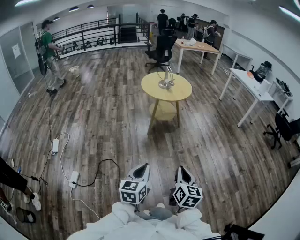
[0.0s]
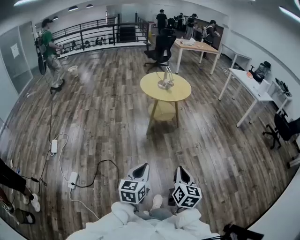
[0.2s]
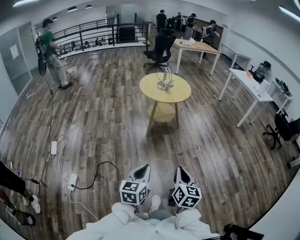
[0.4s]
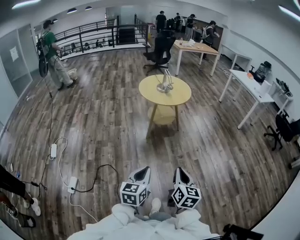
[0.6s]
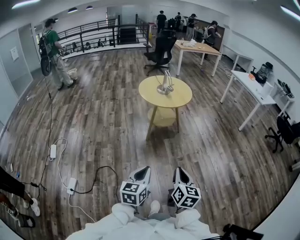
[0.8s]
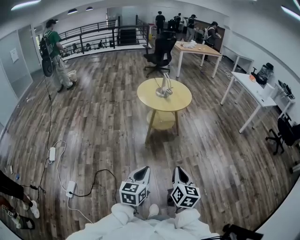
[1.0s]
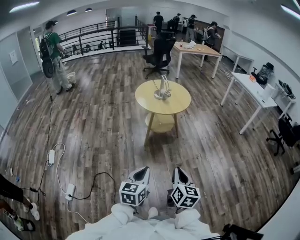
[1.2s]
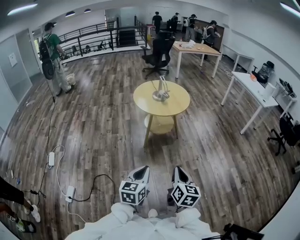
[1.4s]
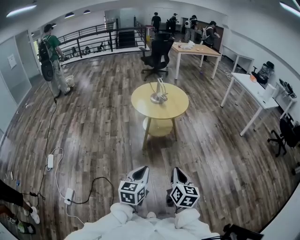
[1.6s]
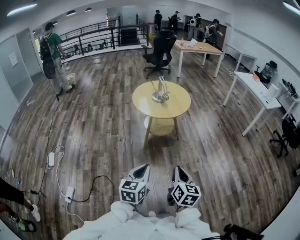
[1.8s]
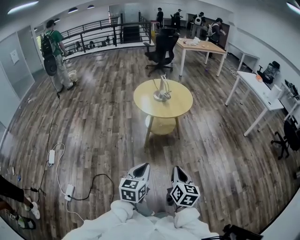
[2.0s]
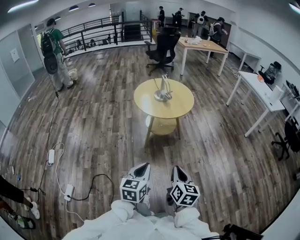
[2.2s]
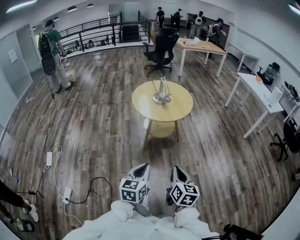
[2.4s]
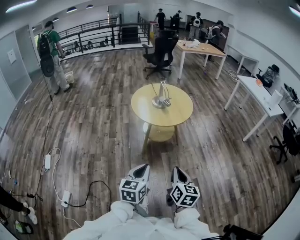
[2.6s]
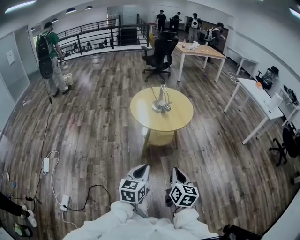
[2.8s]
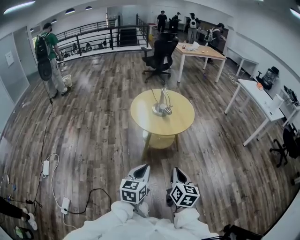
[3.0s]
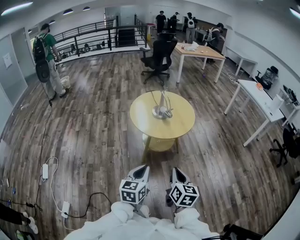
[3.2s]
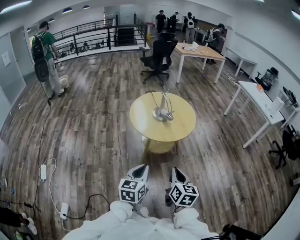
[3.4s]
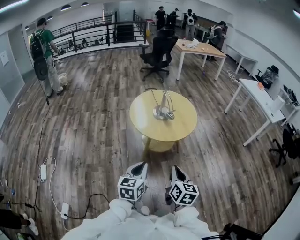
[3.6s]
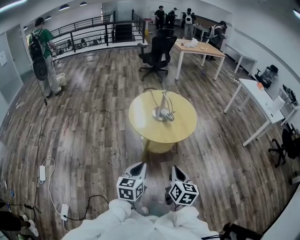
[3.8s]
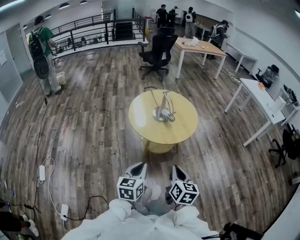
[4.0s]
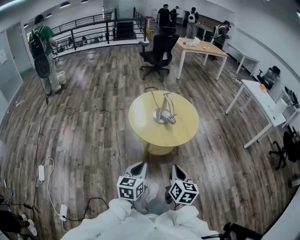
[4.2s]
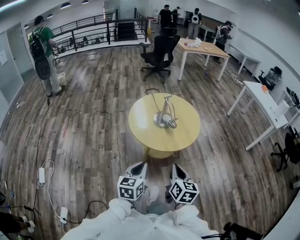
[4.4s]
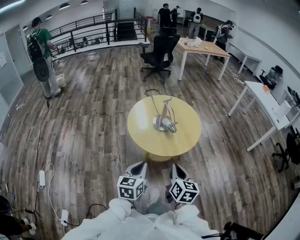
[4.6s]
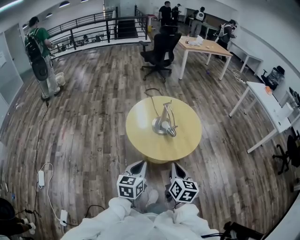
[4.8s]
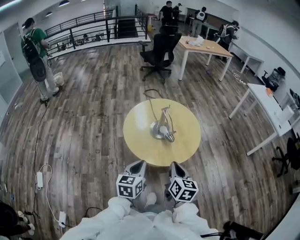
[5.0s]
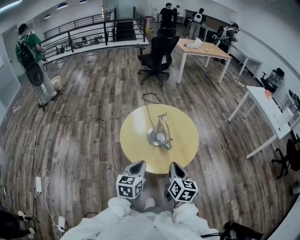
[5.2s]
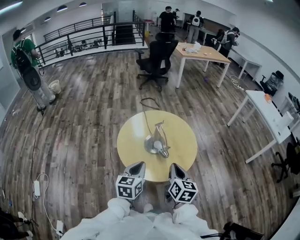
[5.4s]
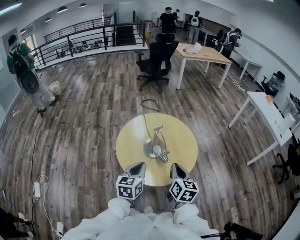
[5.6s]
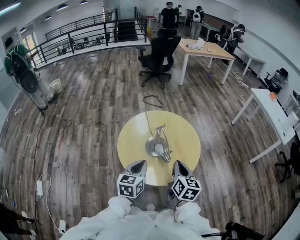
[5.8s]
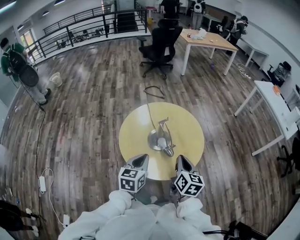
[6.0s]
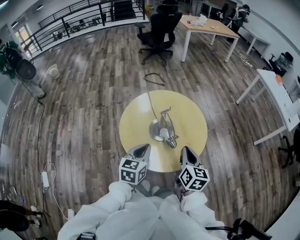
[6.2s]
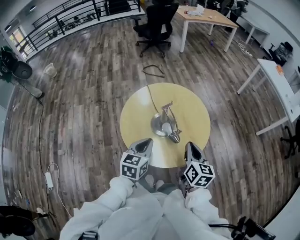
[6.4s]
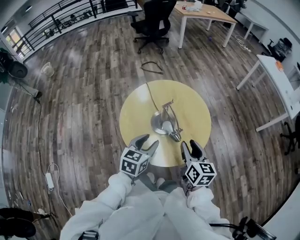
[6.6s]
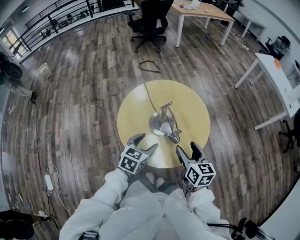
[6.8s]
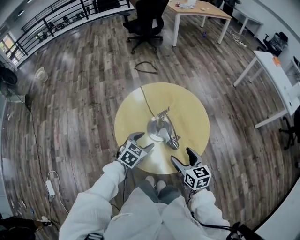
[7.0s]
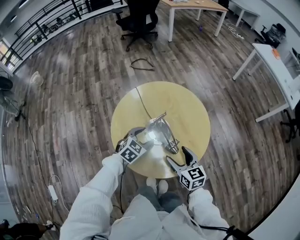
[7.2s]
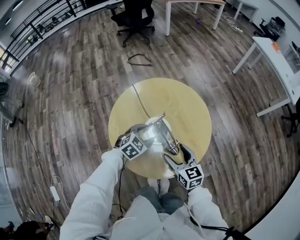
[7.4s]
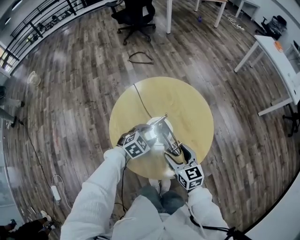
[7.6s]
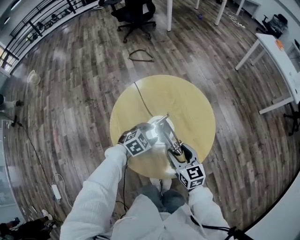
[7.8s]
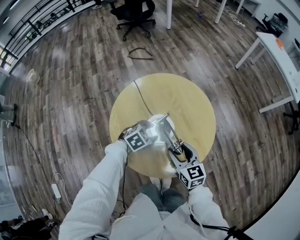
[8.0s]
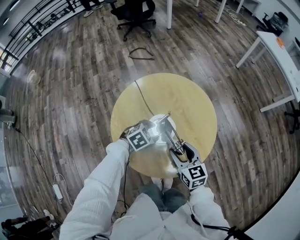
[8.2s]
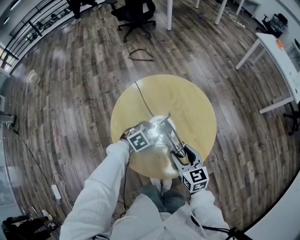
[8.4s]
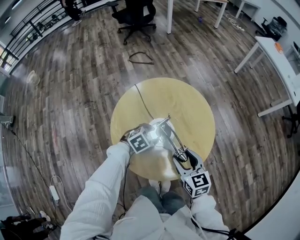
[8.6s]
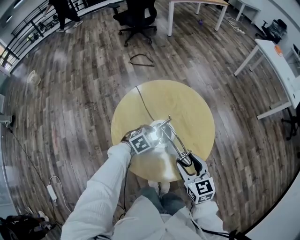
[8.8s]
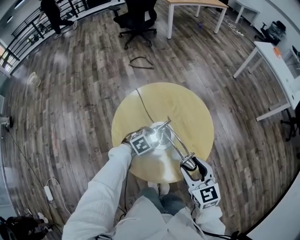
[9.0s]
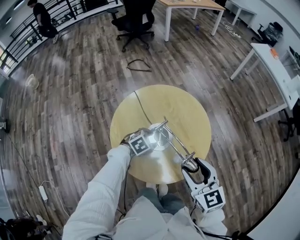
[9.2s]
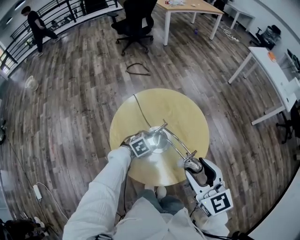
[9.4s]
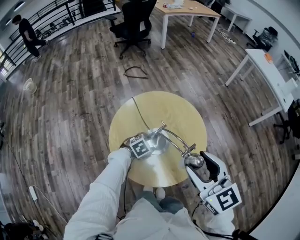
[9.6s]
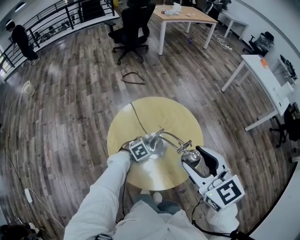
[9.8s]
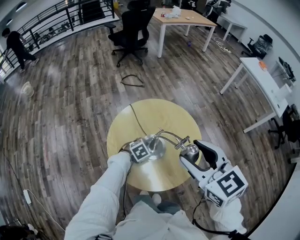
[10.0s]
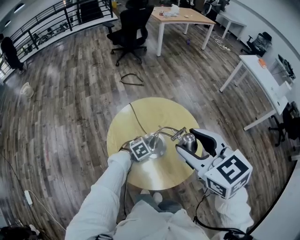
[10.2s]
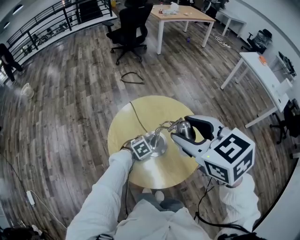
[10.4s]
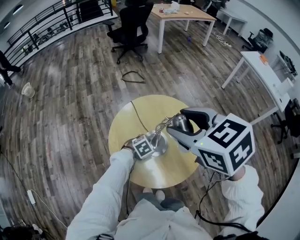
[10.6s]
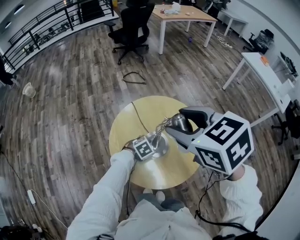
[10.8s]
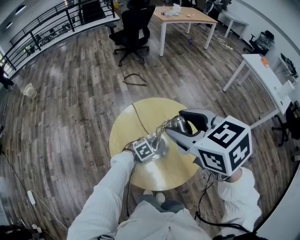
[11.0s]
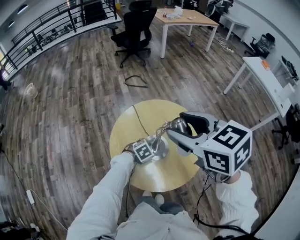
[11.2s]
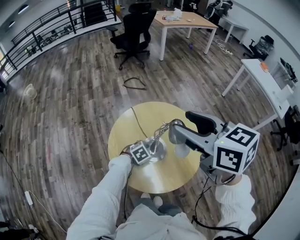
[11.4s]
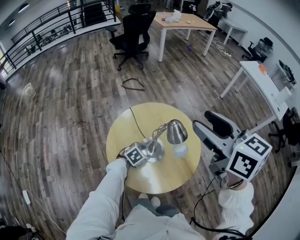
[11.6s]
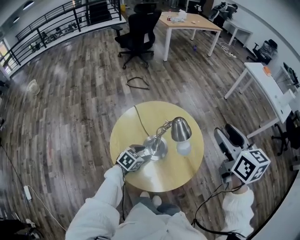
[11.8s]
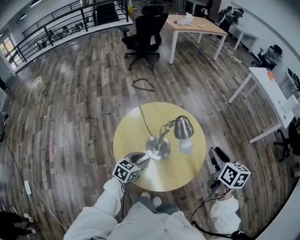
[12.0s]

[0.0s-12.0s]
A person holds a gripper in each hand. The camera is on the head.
0.0s to 1.6s: The grippers both shift forward by roughly 25 cm.
1.6s to 3.0s: Both grippers move forward, roughly 20 cm.
3.0s to 4.4s: Both grippers travel together forward, about 20 cm.
4.4s to 6.0s: Both grippers travel together forward, some 30 cm.
6.0s to 7.6s: The left gripper moves forward and downward, some 25 cm, rotates some 60 degrees, and opens its fingers, while the right gripper shifts about 15 cm downward, forward and to the left, turns by about 20 degrees, and opens up.
7.6s to 9.0s: The right gripper heads upward, covering about 10 cm.
9.0s to 10.4s: The right gripper is displaced upward and to the left by roughly 25 cm.
10.4s to 12.0s: The right gripper travels to the right and downward by approximately 25 cm, and changes its angle by roughly 40 degrees, while the left gripper travels upward and backward by some 10 cm, turns by about 40 degrees, and closes up.

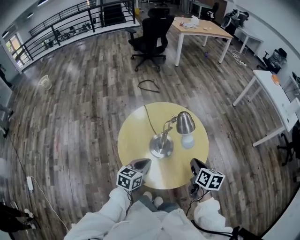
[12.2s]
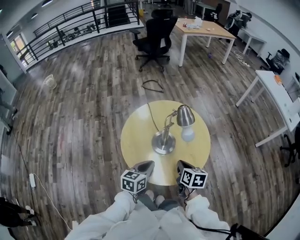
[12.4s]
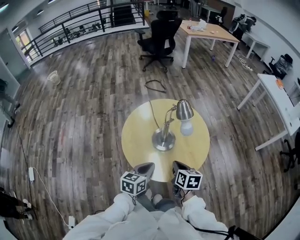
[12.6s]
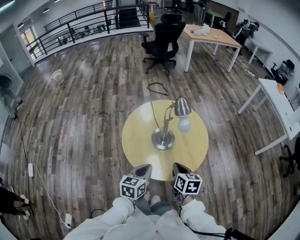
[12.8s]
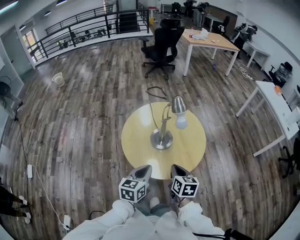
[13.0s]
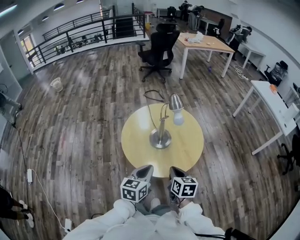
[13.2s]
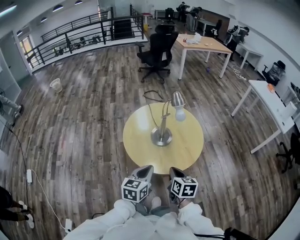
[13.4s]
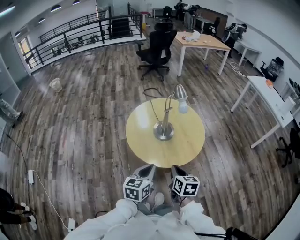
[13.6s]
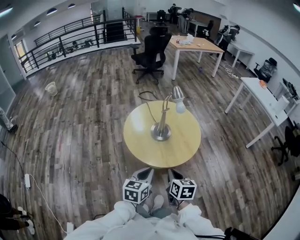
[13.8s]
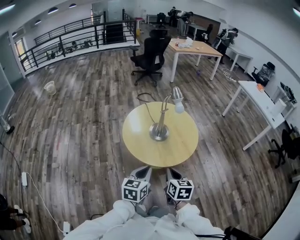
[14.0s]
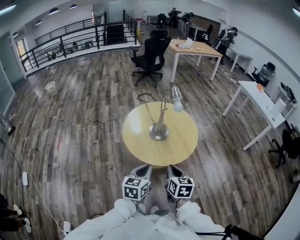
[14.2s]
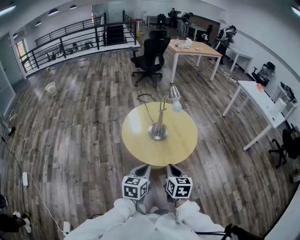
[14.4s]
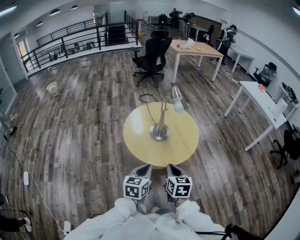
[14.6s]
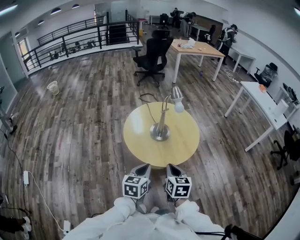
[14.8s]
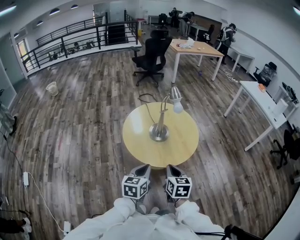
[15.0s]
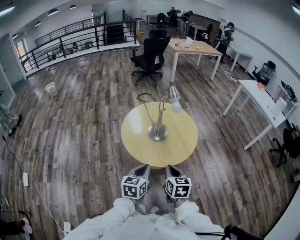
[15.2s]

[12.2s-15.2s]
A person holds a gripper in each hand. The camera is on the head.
12.2s to 13.8s: The left gripper heads backward, covering approximately 25 cm. The right gripper is displaced backward and to the left by some 25 cm.
13.8s to 15.2s: The grippers move only a little.

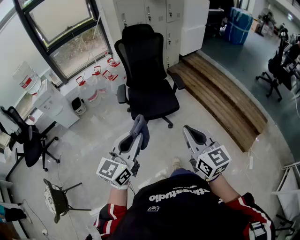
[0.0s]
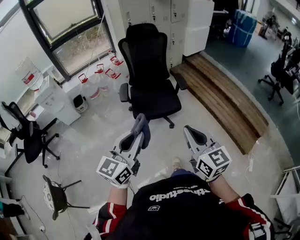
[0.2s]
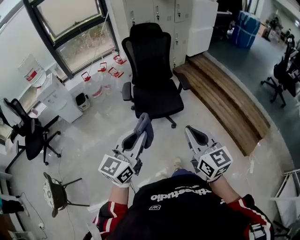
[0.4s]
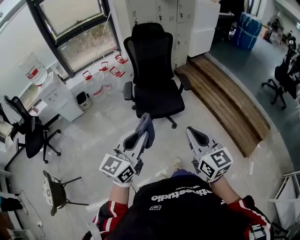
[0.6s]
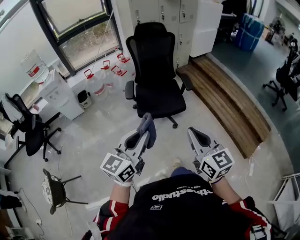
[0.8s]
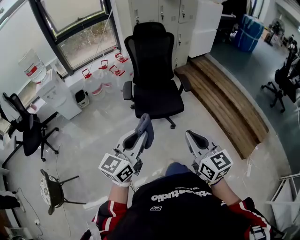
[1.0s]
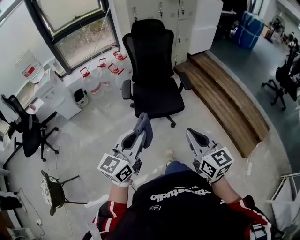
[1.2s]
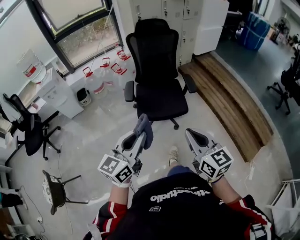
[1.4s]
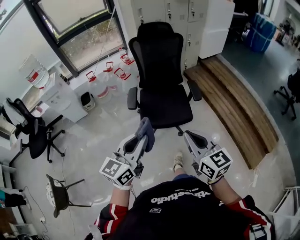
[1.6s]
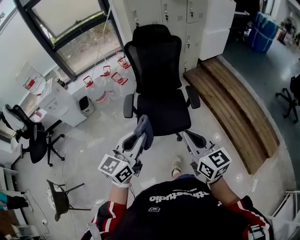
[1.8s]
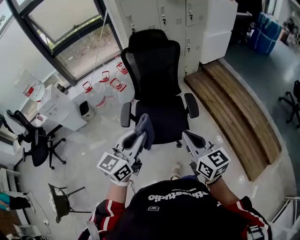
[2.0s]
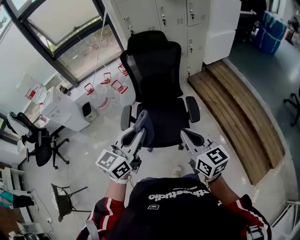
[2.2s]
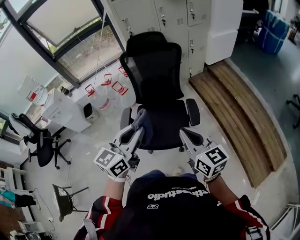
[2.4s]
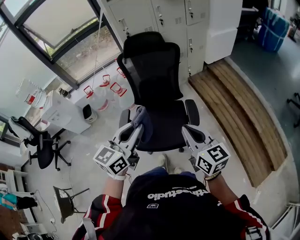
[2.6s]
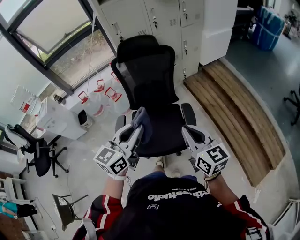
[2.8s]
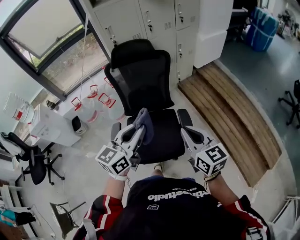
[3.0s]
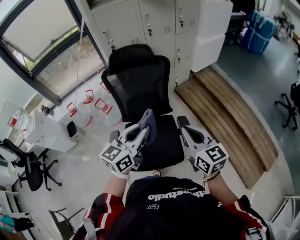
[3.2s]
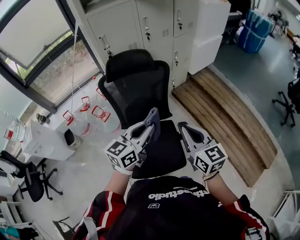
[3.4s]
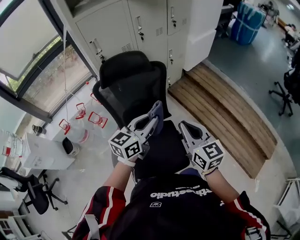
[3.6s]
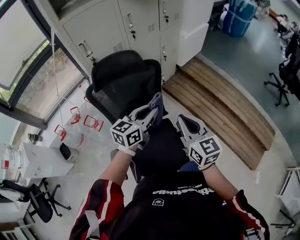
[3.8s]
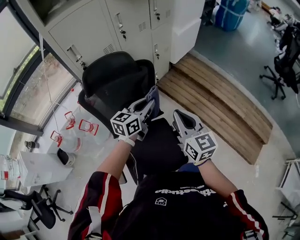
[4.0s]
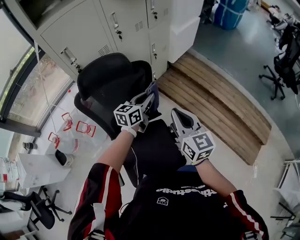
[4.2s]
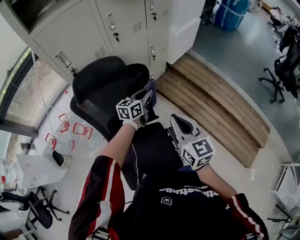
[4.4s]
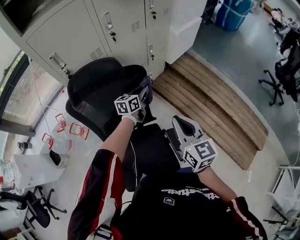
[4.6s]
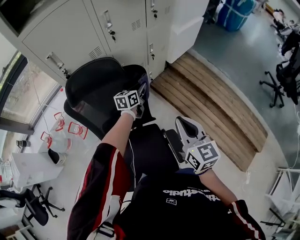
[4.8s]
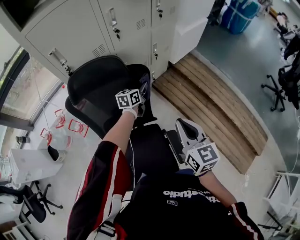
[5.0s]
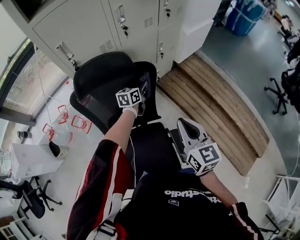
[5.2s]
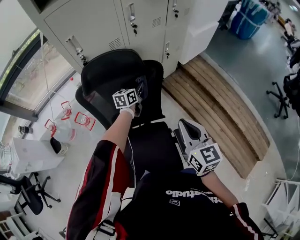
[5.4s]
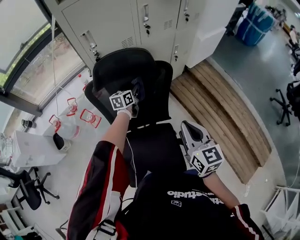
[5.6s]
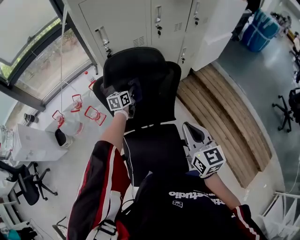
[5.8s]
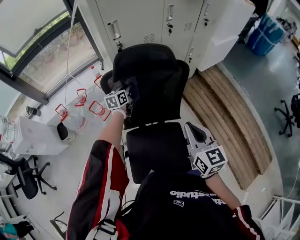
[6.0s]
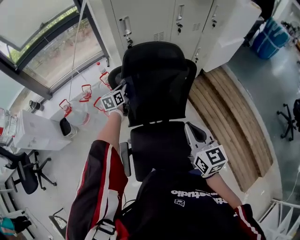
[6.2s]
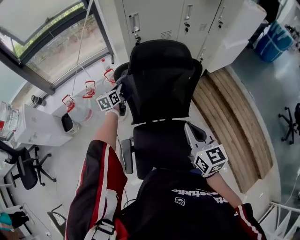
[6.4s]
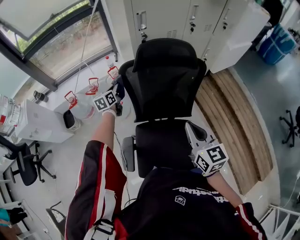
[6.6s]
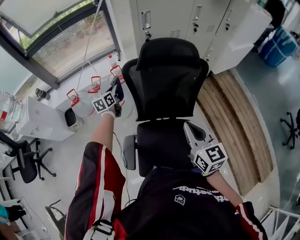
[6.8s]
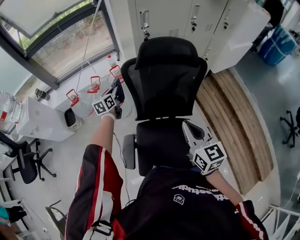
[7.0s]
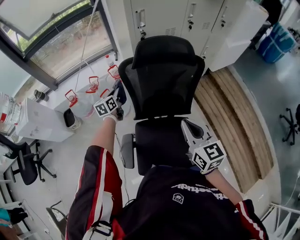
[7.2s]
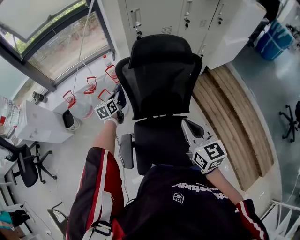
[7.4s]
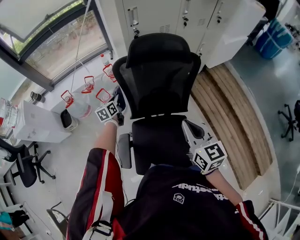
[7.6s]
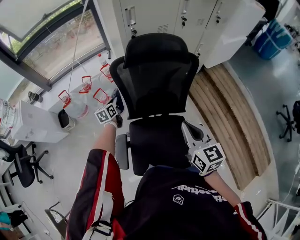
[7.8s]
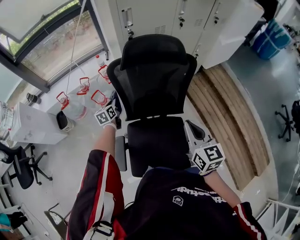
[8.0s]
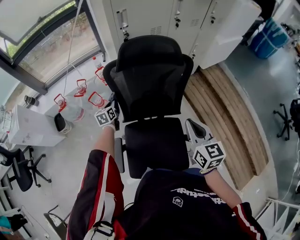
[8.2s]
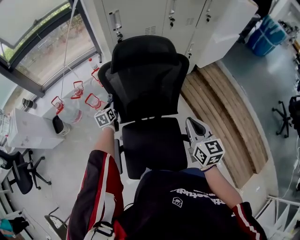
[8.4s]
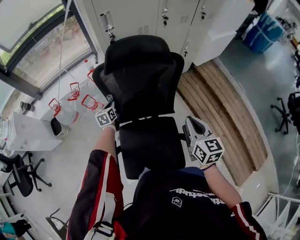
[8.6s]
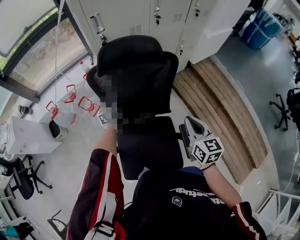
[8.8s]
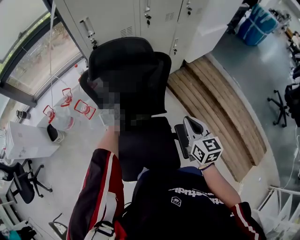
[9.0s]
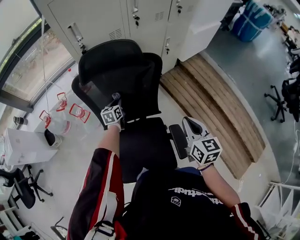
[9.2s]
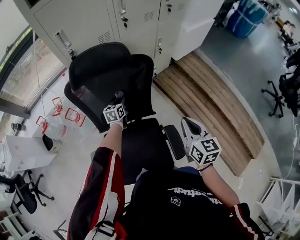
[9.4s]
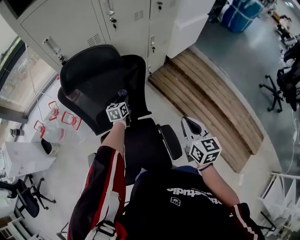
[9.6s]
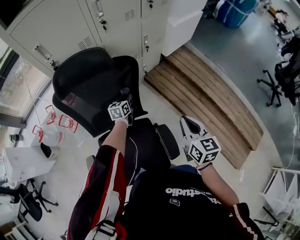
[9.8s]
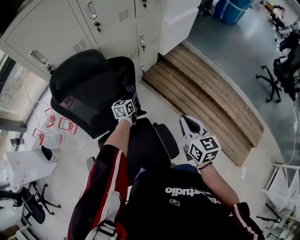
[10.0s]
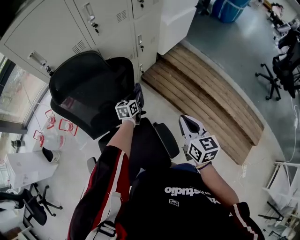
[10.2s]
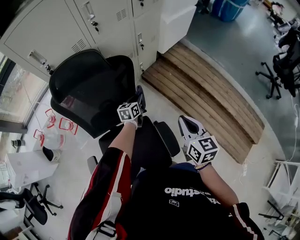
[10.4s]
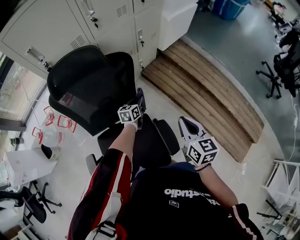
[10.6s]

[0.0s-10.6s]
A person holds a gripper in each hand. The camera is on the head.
0.0s to 1.6s: Both grippers travel together forward, approximately 15 cm.
1.6s to 3.0s: The pair of grippers is taken forward, approximately 40 cm.
3.0s to 4.6s: The left gripper is displaced forward by about 60 cm, and turns by roughly 20 degrees. Meanwhile the right gripper goes roughly 35 cm forward, and turns by about 20 degrees.
4.6s to 6.0s: The left gripper goes approximately 35 cm to the left, and swivels about 30 degrees; the right gripper moves to the left, some 15 cm.
6.0s to 7.6s: The left gripper shifts approximately 20 cm to the left and backward. The right gripper travels to the left by about 5 cm.
7.6s to 9.0s: Both grippers move to the right, some 20 cm.
9.0s to 10.6s: The right gripper shifts roughly 15 cm to the right. The left gripper is displaced to the right by roughly 35 cm, and turns by about 30 degrees.
